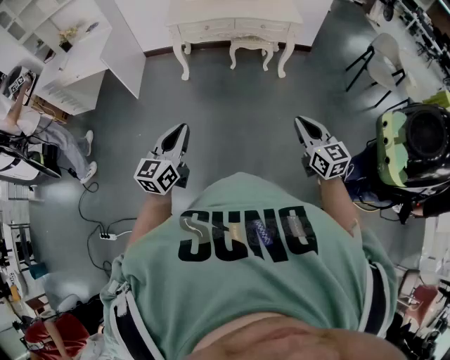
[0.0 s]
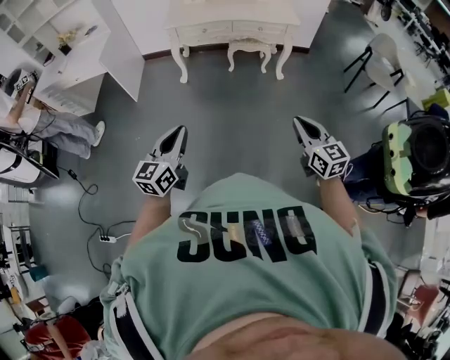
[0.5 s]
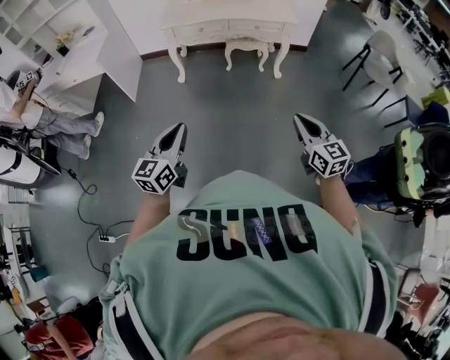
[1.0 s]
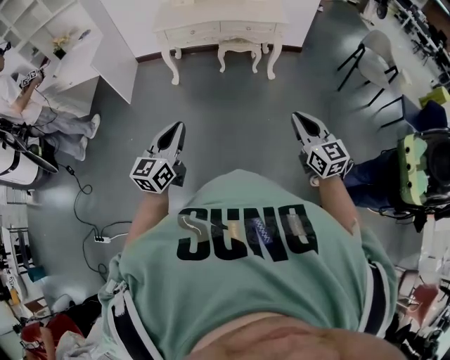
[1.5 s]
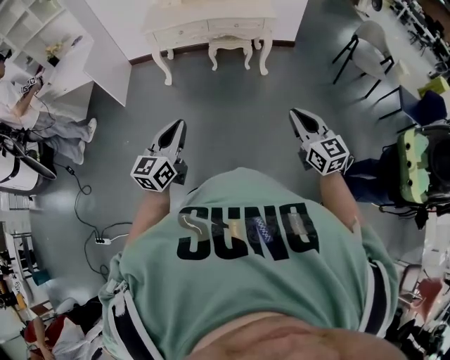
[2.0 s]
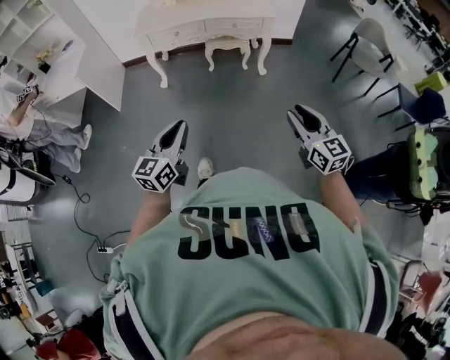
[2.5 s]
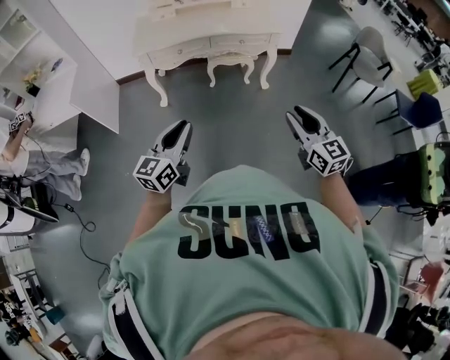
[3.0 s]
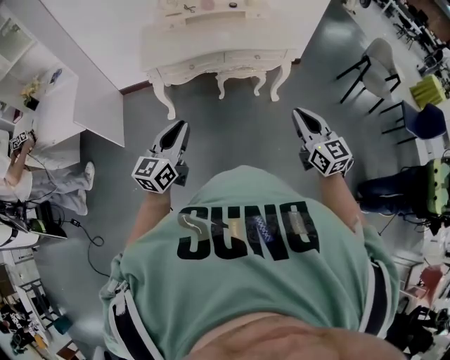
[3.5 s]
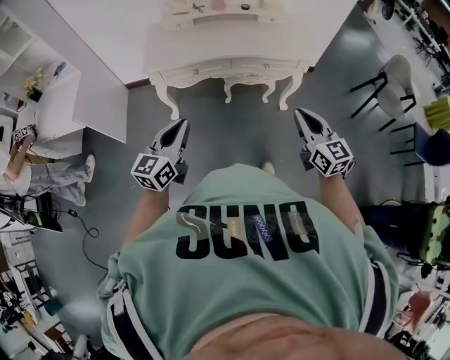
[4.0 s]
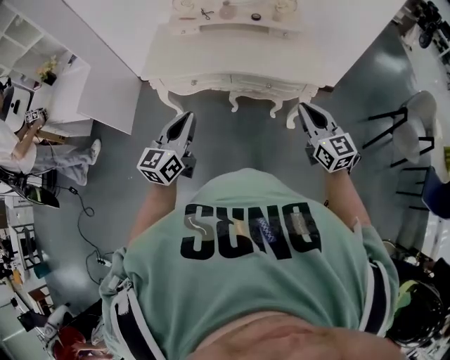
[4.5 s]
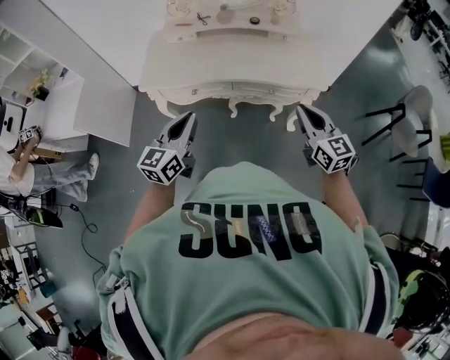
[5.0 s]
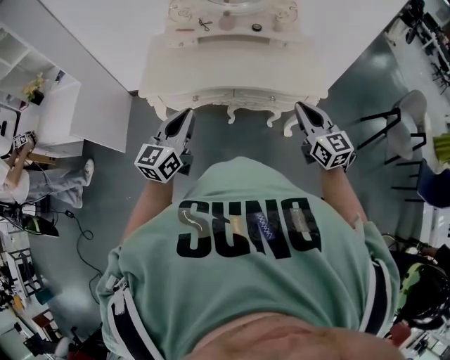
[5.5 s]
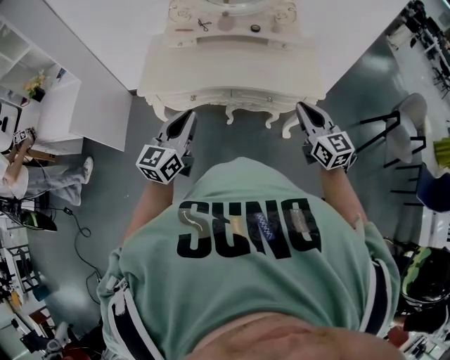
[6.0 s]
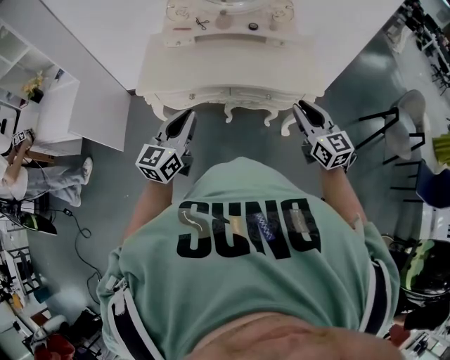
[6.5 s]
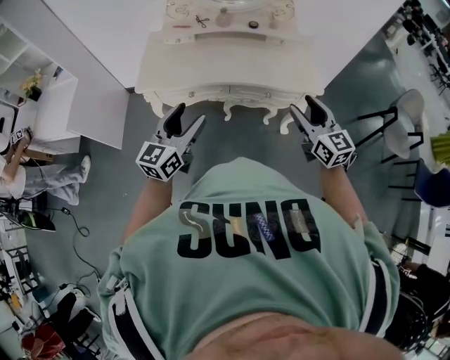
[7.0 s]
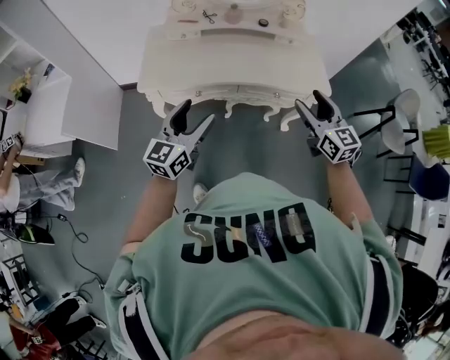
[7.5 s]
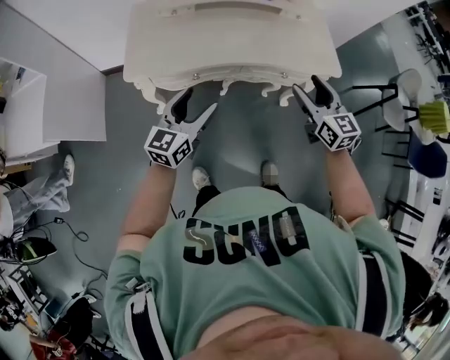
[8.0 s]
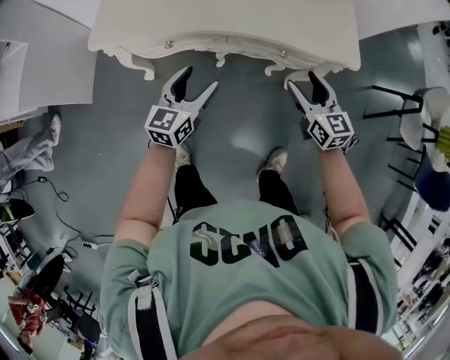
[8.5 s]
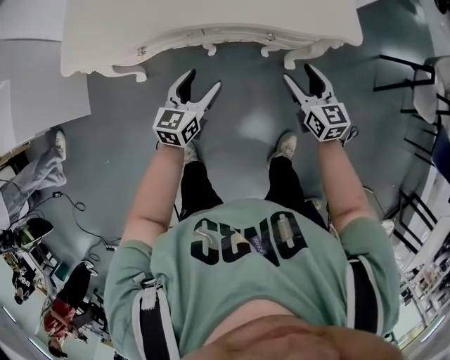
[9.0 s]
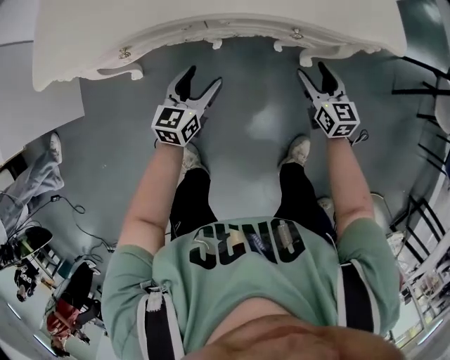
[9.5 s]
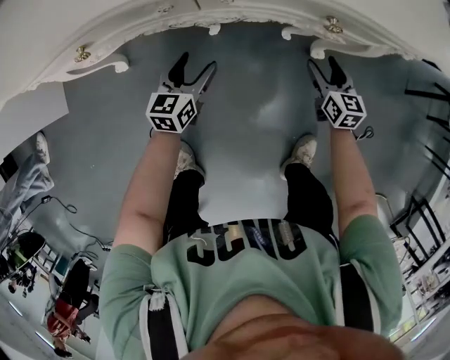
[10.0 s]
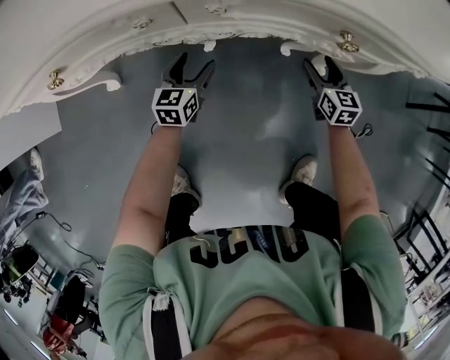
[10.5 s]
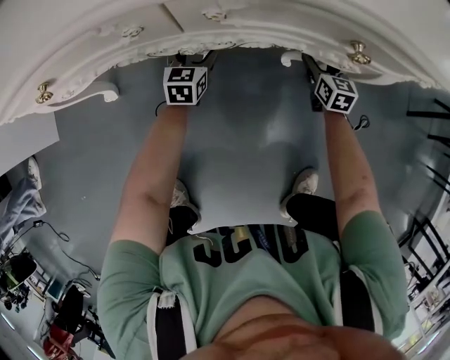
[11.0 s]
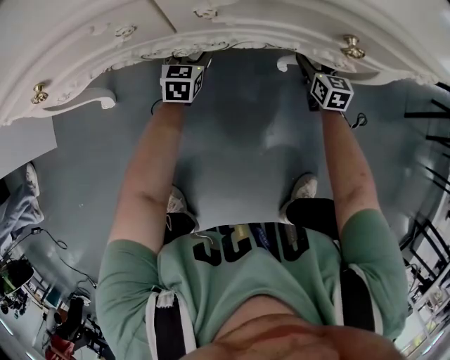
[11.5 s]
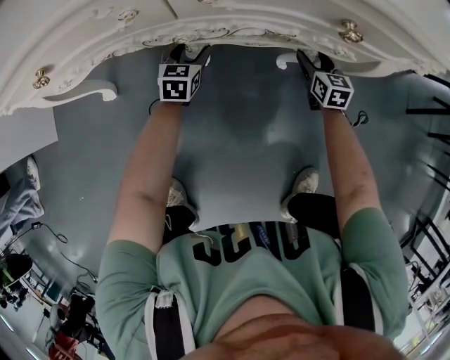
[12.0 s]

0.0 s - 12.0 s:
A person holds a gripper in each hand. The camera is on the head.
0.0 s - 2.0 s: The grippers both shift to the right by approximately 15 cm.
2.0 s - 4.0 s: The two grippers travel together, forward, approximately 50 cm. The right gripper opens, then closes again.
4.0 s - 6.0 s: The left gripper is displaced forward and to the right by about 20 cm. The right gripper goes about 25 cm forward.
6.0 s - 8.0 s: The left gripper moves downward, forward and to the left, about 20 cm, and opens up, while the right gripper travels to the left, forward and downward by about 15 cm, and opens its fingers.
8.0 s - 10.0 s: Both grippers travel together downward, about 60 cm. The left gripper swivels roughly 20 degrees; the right gripper rotates about 20 degrees.
10.0 s - 12.0 s: Both grippers travel together downward and forward, approximately 15 cm.

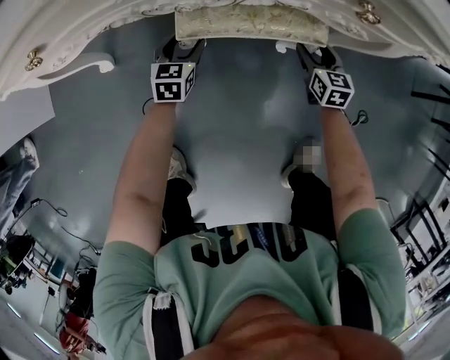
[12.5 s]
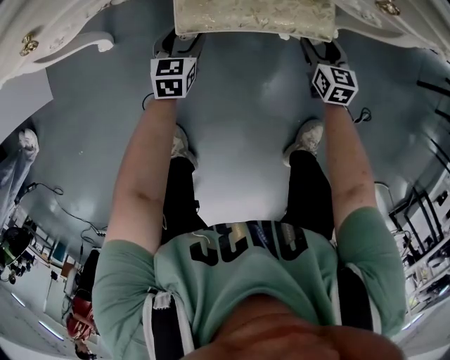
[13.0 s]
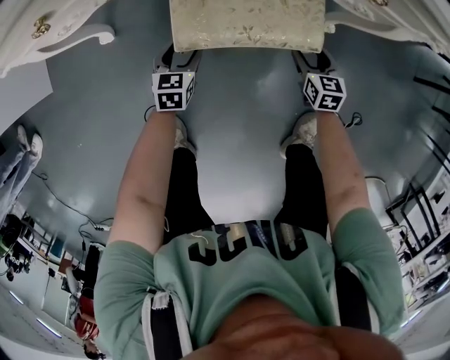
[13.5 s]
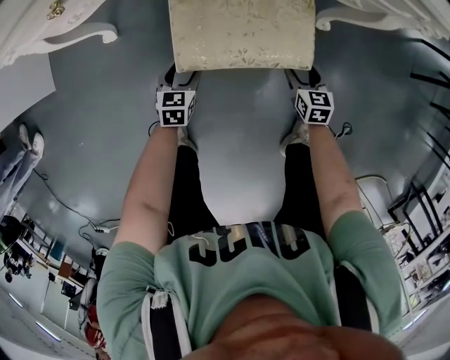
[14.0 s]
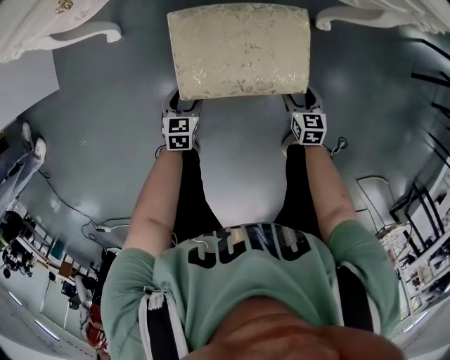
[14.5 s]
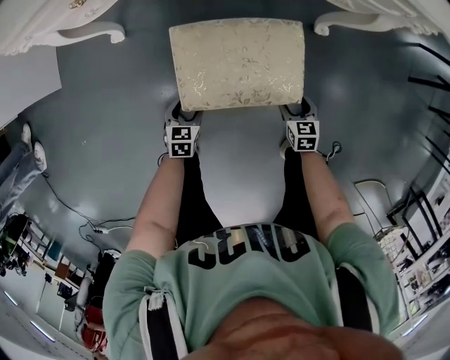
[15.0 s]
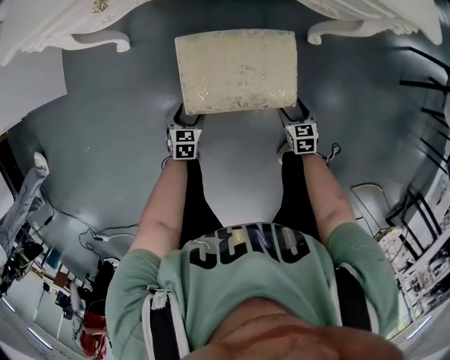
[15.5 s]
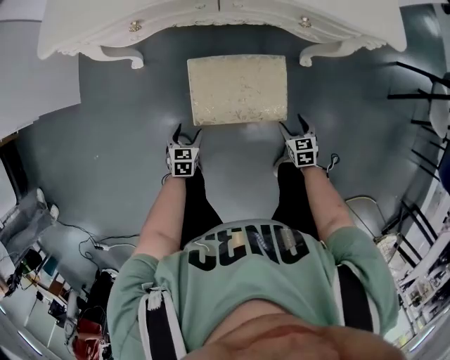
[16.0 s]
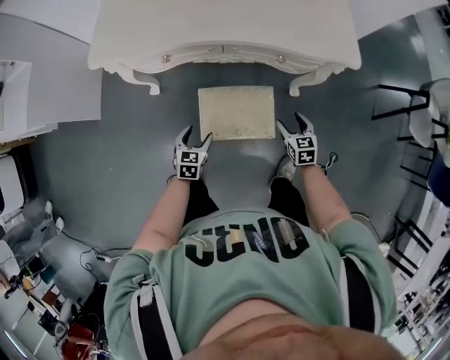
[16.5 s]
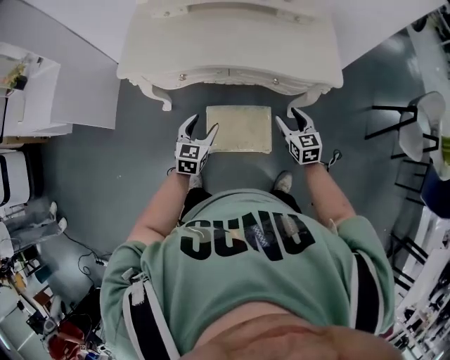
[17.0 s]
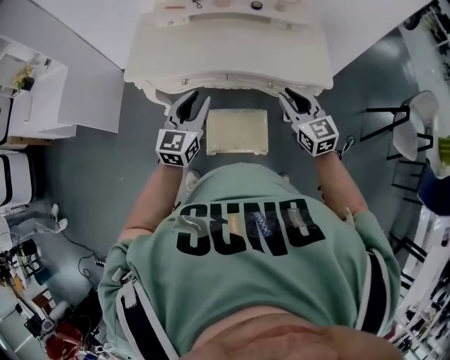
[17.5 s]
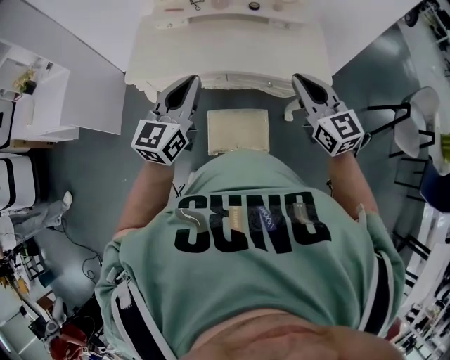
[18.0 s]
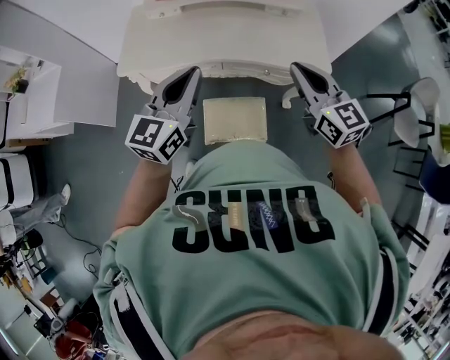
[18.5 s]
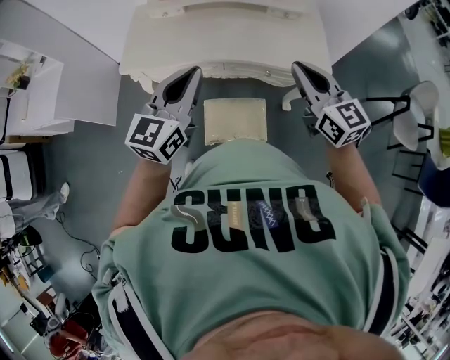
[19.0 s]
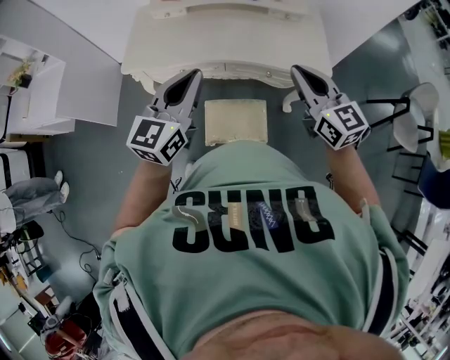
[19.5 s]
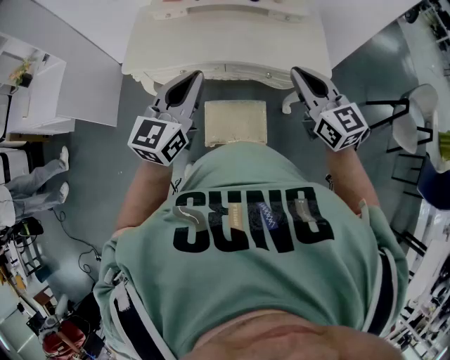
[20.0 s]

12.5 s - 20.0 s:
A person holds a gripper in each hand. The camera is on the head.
12.5 s - 14.5 s: Both grippers travel together backward, some 25 cm.
14.5 s - 16.5 s: Both grippers travel together upward, about 30 cm.
16.5 s - 18.0 s: Both grippers move upward, approximately 50 cm. The right gripper angles its fingers upward, by approximately 40 degrees, and closes its fingers. The left gripper tilts its fingers some 40 degrees upward, and closes its fingers.
18.0 s - 20.0 s: The grippers move only a little.

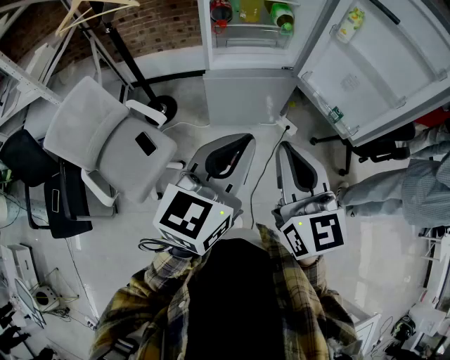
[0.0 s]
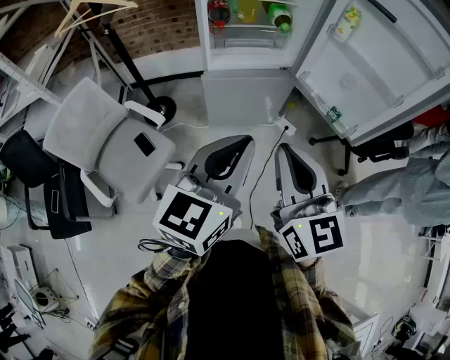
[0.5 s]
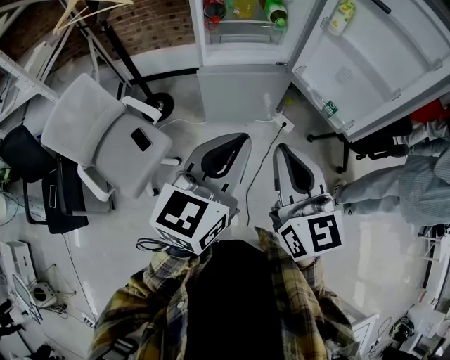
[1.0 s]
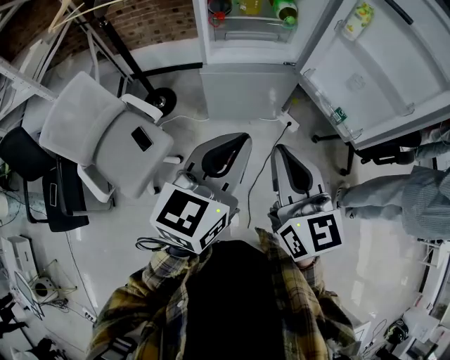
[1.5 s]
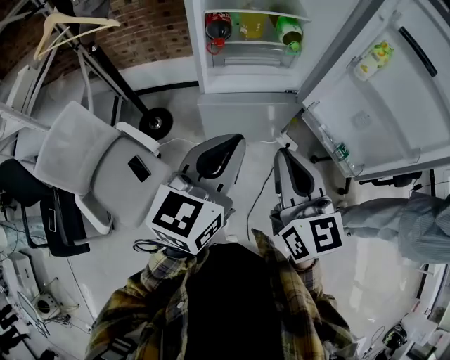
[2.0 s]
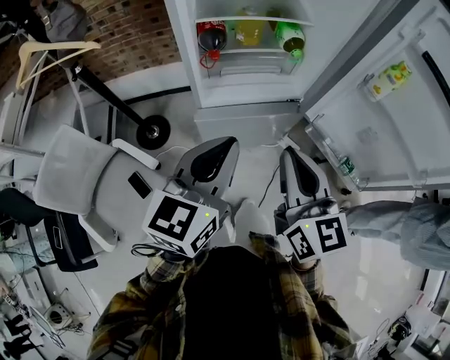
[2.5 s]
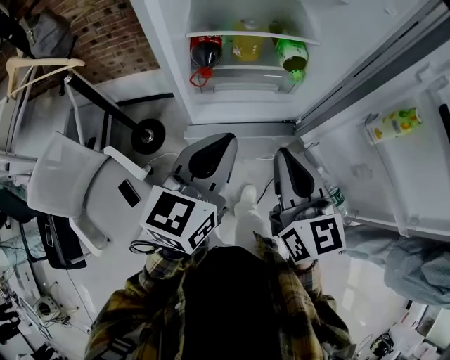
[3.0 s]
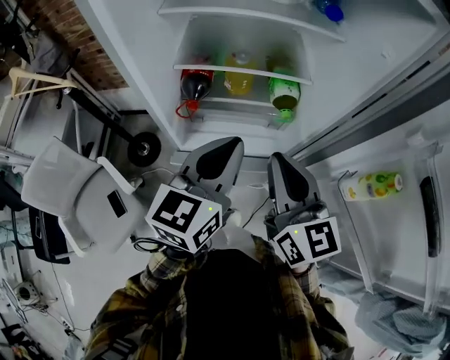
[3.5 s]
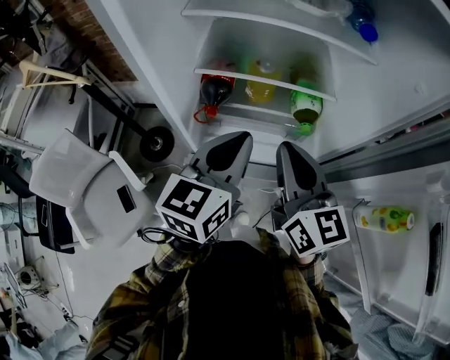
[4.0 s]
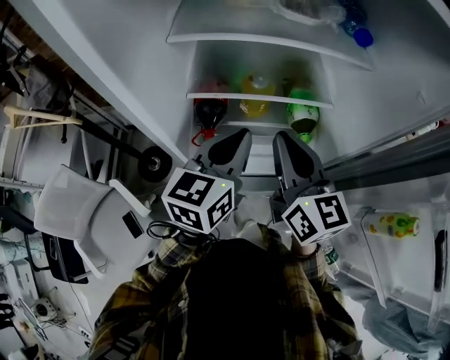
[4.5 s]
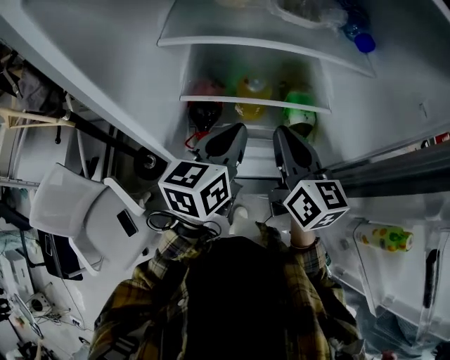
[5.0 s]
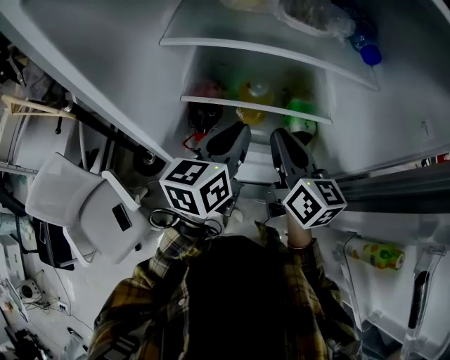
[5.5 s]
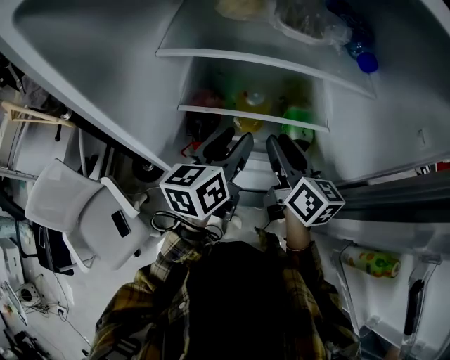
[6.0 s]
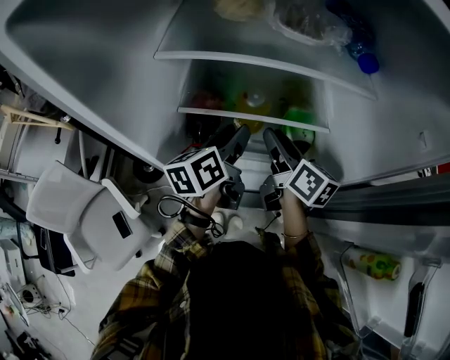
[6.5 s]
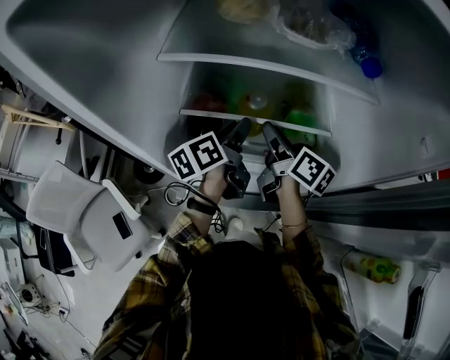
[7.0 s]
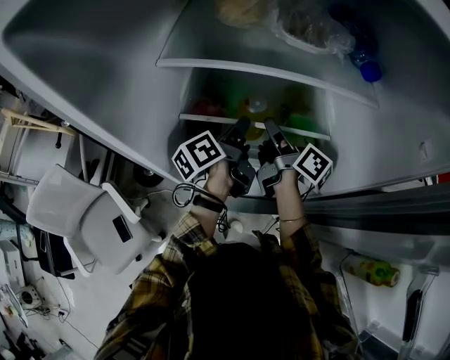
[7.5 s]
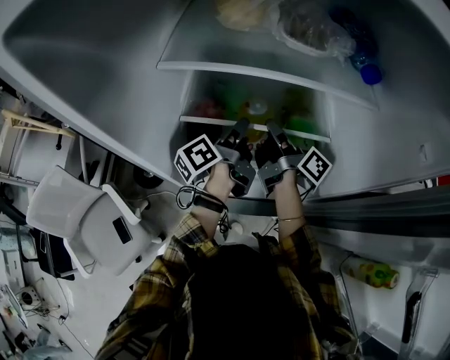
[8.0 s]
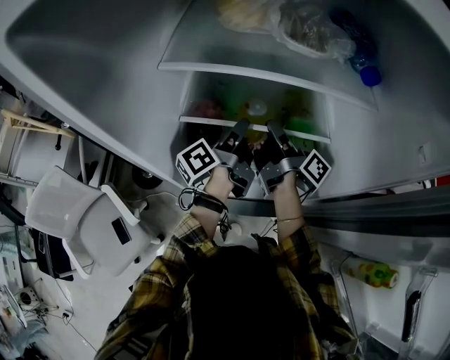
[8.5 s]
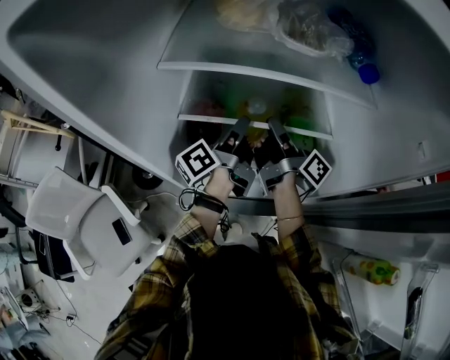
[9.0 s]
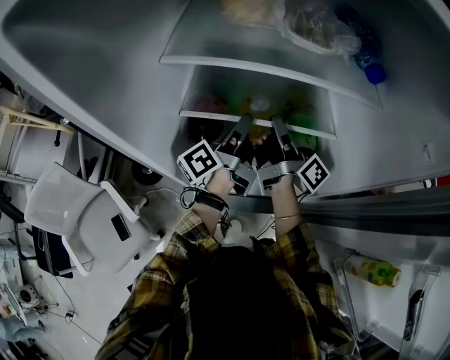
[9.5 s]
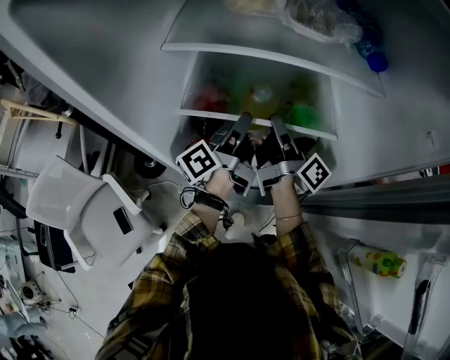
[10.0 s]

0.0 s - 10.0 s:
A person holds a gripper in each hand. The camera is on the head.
0.0 s - 2.0 s: The two grippers go some 20 cm forward.
2.0 s - 4.0 s: Both grippers move forward, about 35 cm.
4.0 s - 6.0 s: The left gripper is displaced forward by approximately 15 cm, and opens. Meanwhile the right gripper travels forward and downward by roughly 15 cm, turns by about 20 degrees, and opens up.
6.0 s - 8.0 s: The left gripper moves forward and downward, roughly 10 cm, rotates around the line of its fingers by some 50 degrees, counterclockwise from behind, and closes. The right gripper shifts some 10 cm forward, rotates around the line of its fingers by roughly 50 degrees, clockwise from behind, and closes.
8.0 s - 10.0 s: The grippers move only a little.
